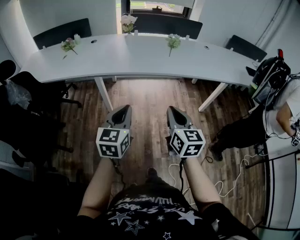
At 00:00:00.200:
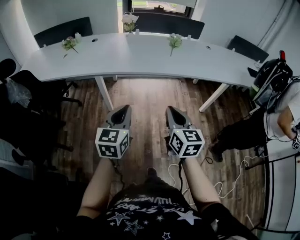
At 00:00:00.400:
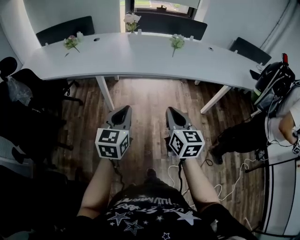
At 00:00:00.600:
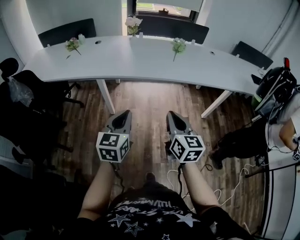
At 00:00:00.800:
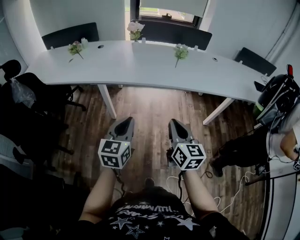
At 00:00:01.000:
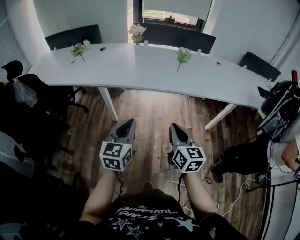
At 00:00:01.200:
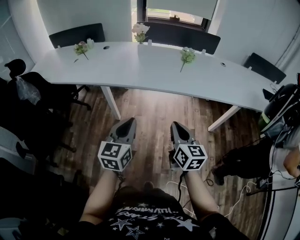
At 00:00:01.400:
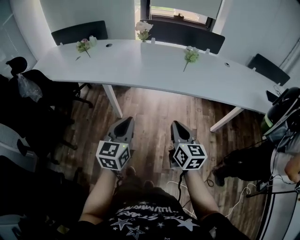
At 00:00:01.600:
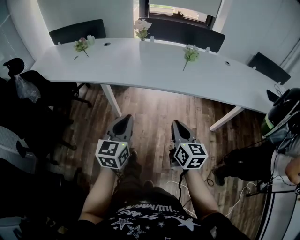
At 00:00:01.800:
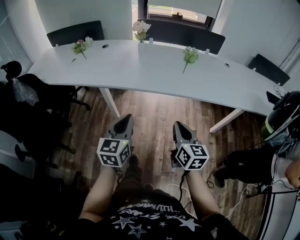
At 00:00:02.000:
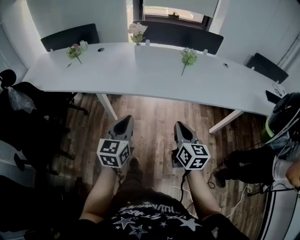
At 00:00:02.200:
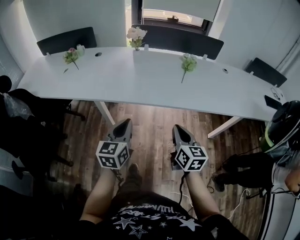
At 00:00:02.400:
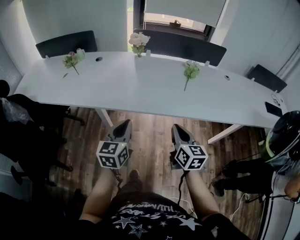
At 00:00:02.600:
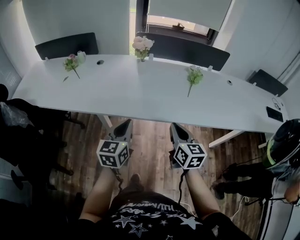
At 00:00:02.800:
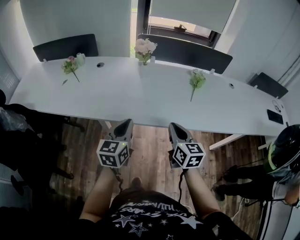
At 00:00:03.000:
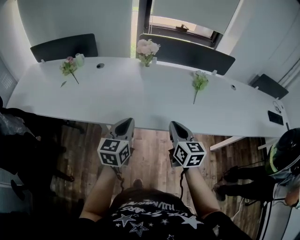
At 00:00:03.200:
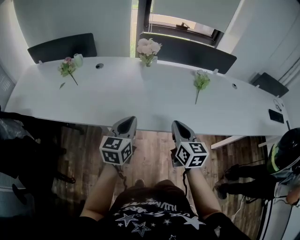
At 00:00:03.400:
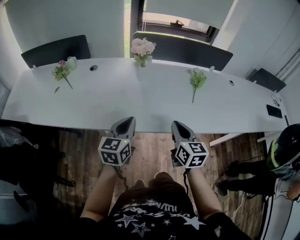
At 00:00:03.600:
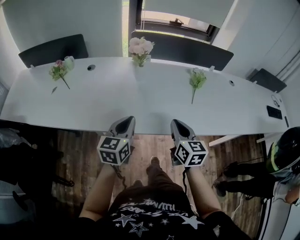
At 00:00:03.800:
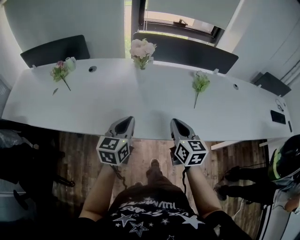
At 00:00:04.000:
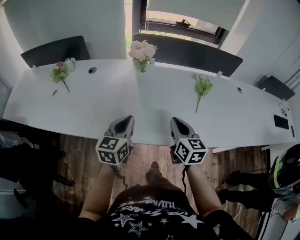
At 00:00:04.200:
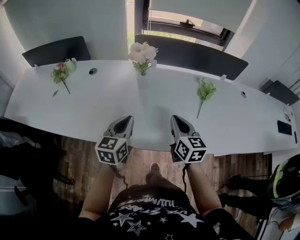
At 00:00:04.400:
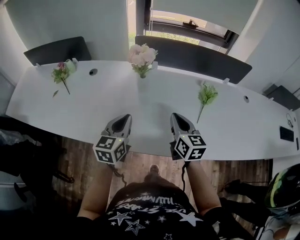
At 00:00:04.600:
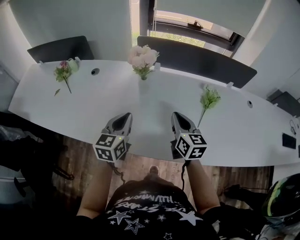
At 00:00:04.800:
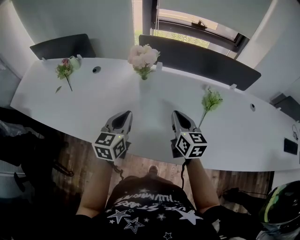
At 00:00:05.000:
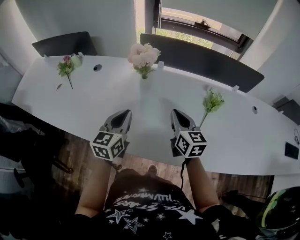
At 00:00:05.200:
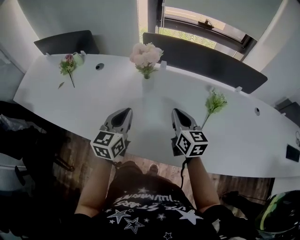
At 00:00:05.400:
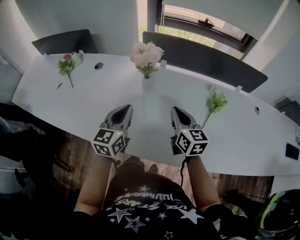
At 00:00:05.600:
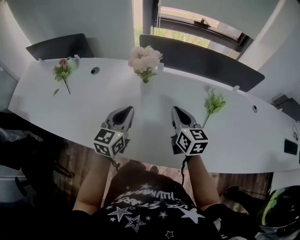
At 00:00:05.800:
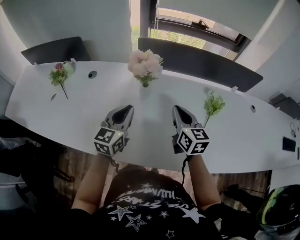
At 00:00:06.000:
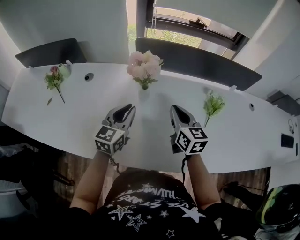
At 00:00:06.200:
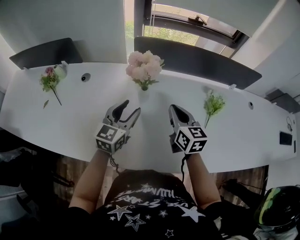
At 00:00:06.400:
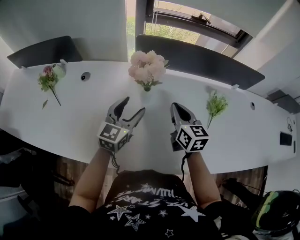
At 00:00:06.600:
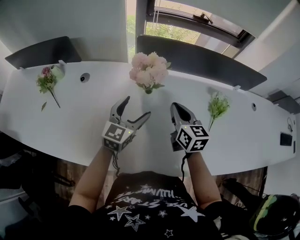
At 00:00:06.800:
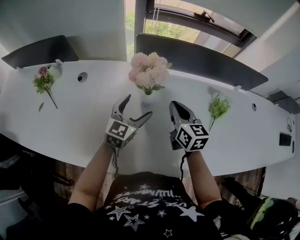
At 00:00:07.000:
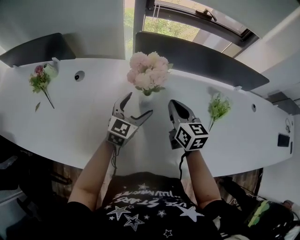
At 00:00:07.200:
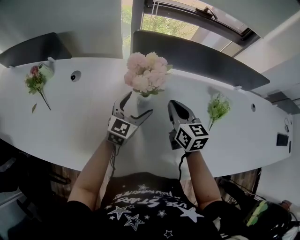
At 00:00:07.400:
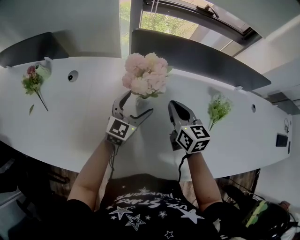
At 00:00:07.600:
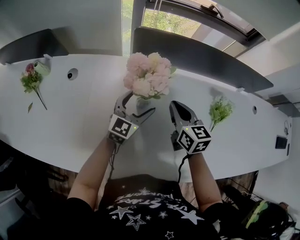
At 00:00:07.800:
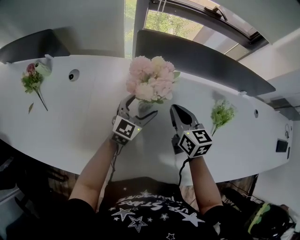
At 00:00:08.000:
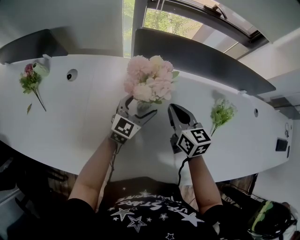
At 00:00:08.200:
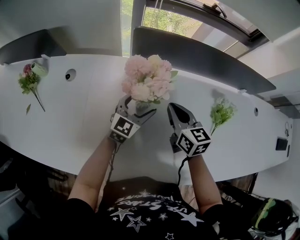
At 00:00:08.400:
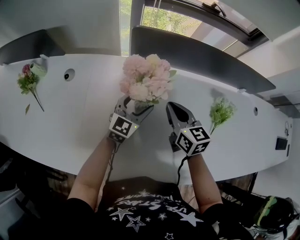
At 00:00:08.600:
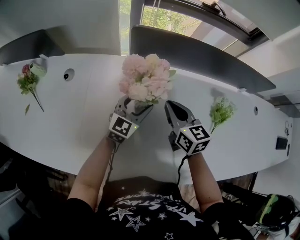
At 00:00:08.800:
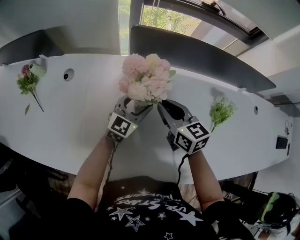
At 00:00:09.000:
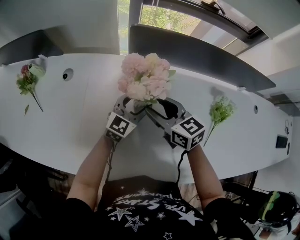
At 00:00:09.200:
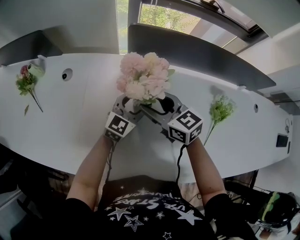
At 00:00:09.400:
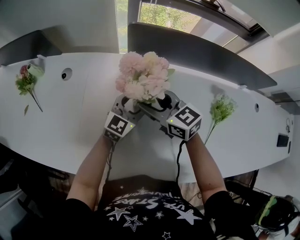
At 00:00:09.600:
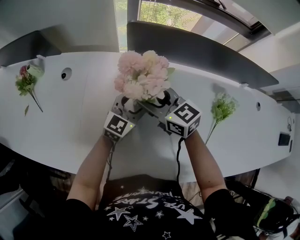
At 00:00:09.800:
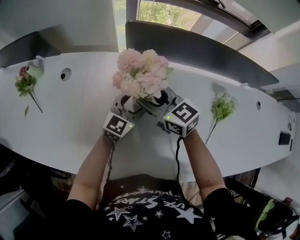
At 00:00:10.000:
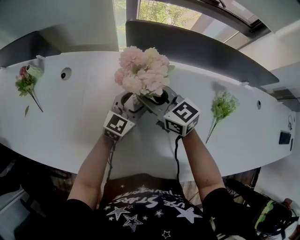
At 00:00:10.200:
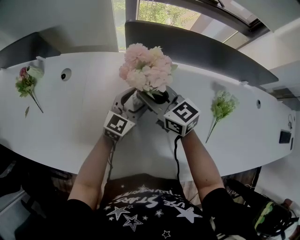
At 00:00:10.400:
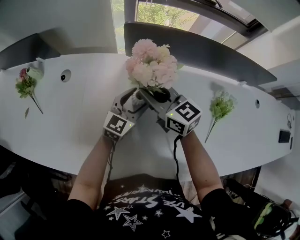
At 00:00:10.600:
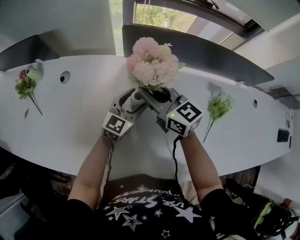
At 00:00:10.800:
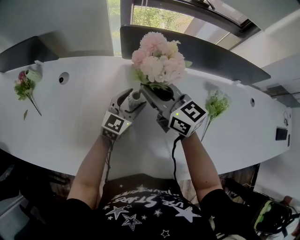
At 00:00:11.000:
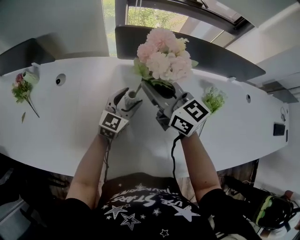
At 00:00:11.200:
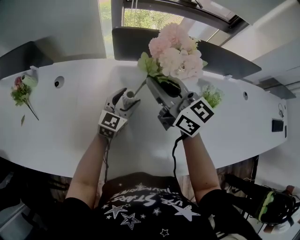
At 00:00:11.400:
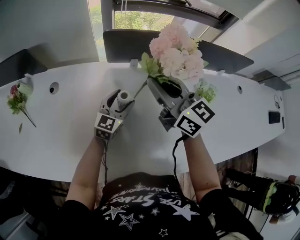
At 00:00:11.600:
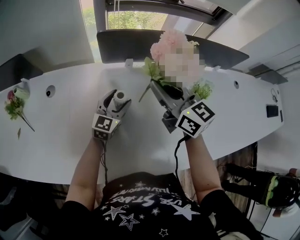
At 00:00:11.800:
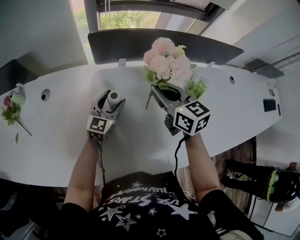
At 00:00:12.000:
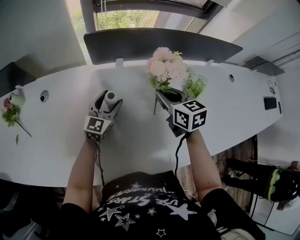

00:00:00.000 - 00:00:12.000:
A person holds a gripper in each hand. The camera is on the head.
00:00:00.000 - 00:00:01.600: The left gripper travels forward by about 10 cm. Meanwhile the right gripper goes roughly 15 cm forward and to the right.
00:00:01.600 - 00:00:03.000: The left gripper heads forward, covering roughly 30 cm, while the right gripper shifts roughly 30 cm forward and to the left.
00:00:03.000 - 00:00:04.400: The grippers both shift forward by approximately 20 cm.
00:00:04.400 - 00:00:06.000: Both grippers travel together forward, about 10 cm.
00:00:06.000 - 00:00:07.600: The two grippers go roughly 15 cm forward and downward. The left gripper opens.
00:00:07.600 - 00:00:09.000: The right gripper travels to the left by roughly 5 cm, swivels approximately 20 degrees, and opens.
00:00:09.000 - 00:00:10.400: The right gripper changes place by about 5 cm, and closes up.
00:00:10.400 - 00:00:12.000: The right gripper is displaced to the right by some 20 cm, and changes its angle by approximately 30 degrees.

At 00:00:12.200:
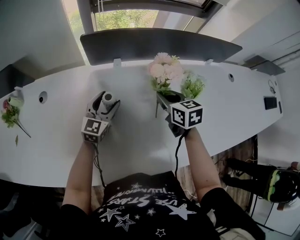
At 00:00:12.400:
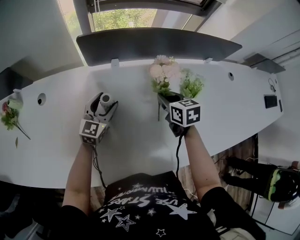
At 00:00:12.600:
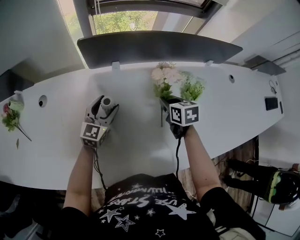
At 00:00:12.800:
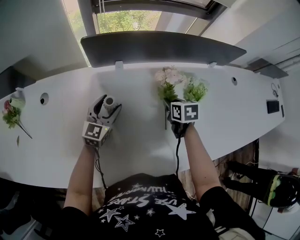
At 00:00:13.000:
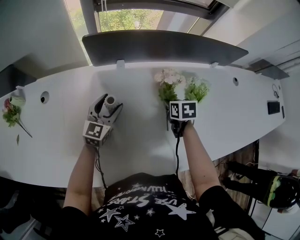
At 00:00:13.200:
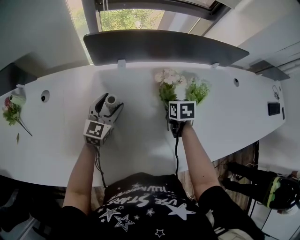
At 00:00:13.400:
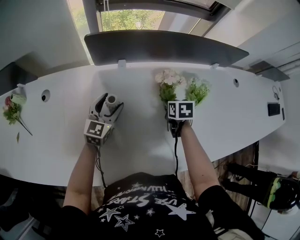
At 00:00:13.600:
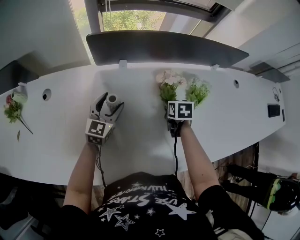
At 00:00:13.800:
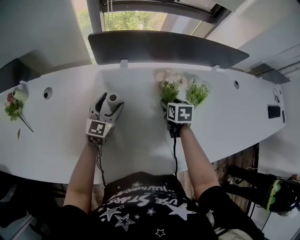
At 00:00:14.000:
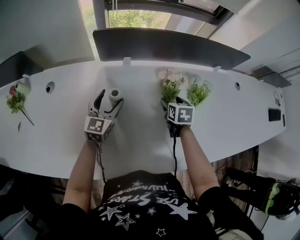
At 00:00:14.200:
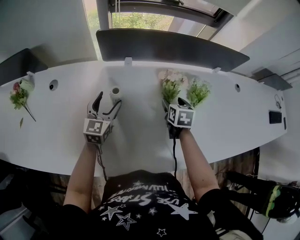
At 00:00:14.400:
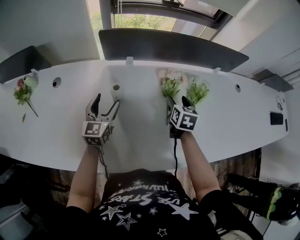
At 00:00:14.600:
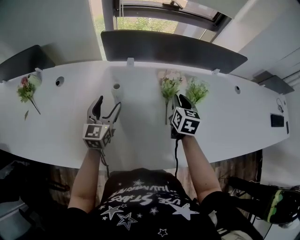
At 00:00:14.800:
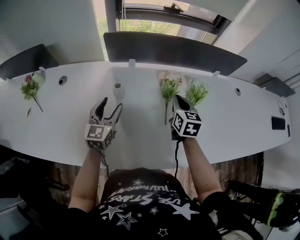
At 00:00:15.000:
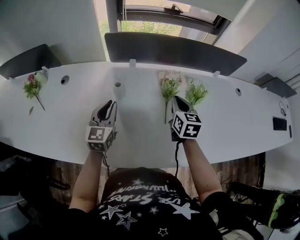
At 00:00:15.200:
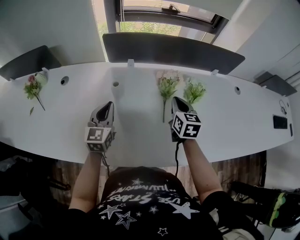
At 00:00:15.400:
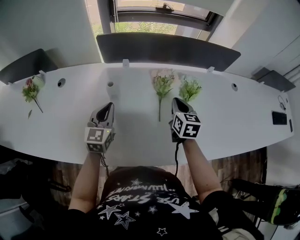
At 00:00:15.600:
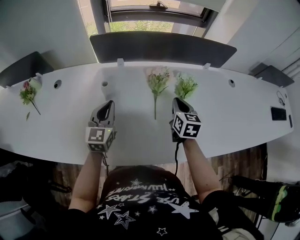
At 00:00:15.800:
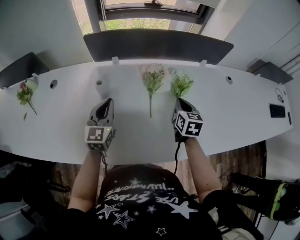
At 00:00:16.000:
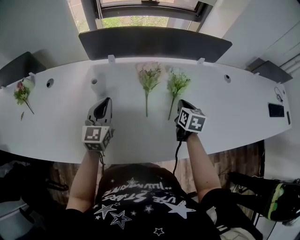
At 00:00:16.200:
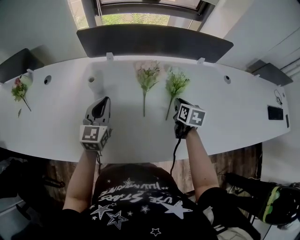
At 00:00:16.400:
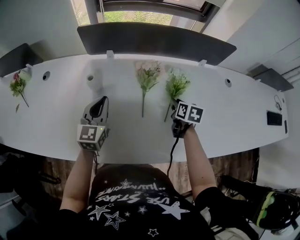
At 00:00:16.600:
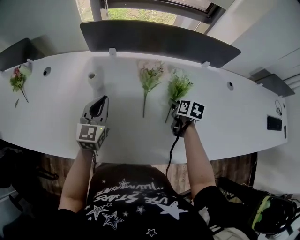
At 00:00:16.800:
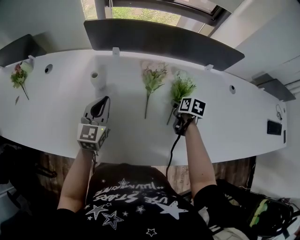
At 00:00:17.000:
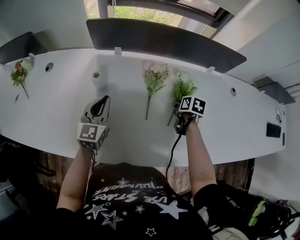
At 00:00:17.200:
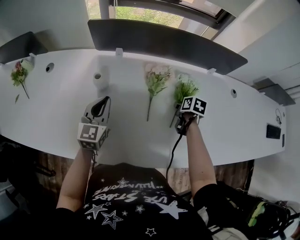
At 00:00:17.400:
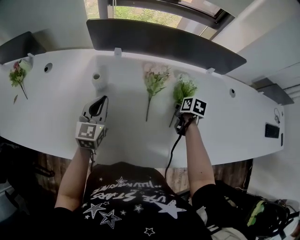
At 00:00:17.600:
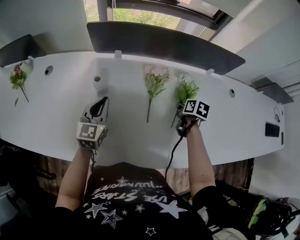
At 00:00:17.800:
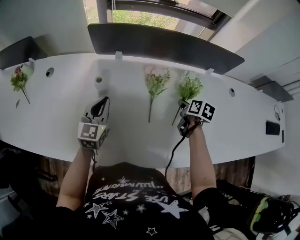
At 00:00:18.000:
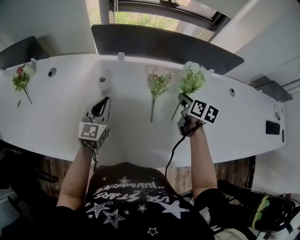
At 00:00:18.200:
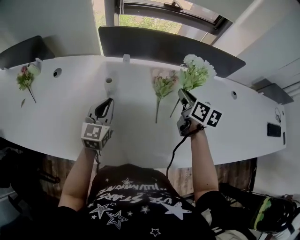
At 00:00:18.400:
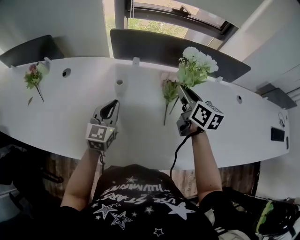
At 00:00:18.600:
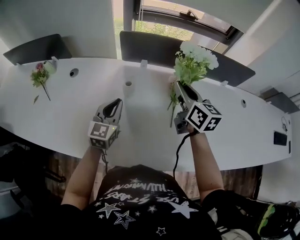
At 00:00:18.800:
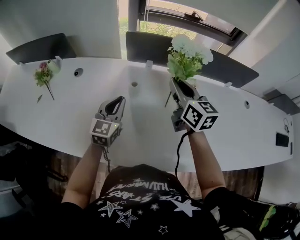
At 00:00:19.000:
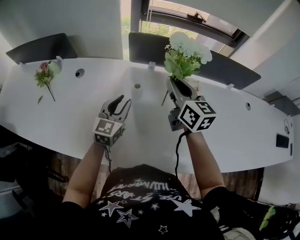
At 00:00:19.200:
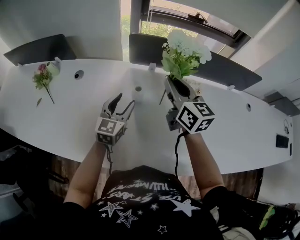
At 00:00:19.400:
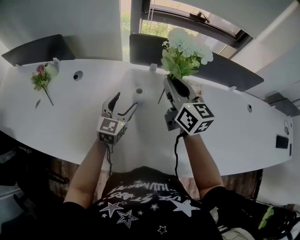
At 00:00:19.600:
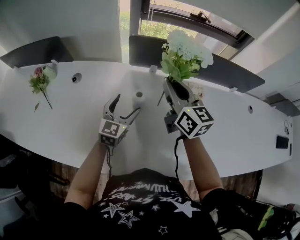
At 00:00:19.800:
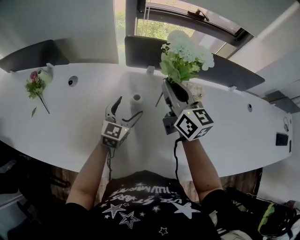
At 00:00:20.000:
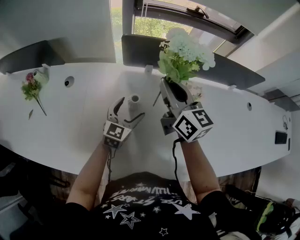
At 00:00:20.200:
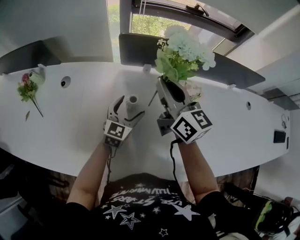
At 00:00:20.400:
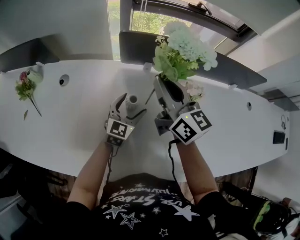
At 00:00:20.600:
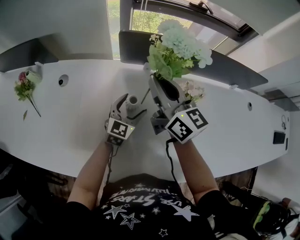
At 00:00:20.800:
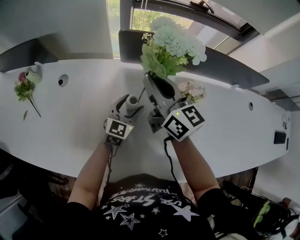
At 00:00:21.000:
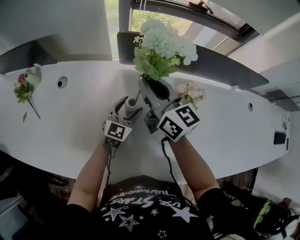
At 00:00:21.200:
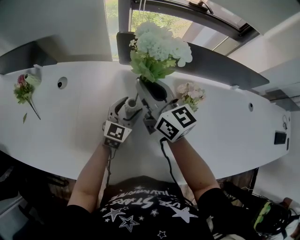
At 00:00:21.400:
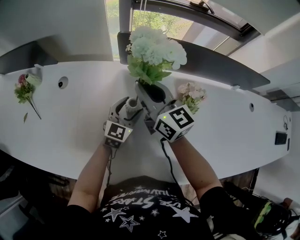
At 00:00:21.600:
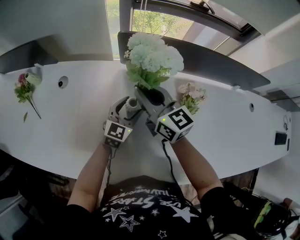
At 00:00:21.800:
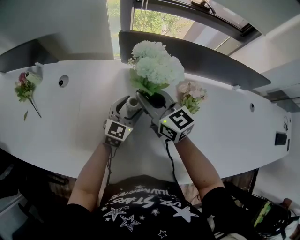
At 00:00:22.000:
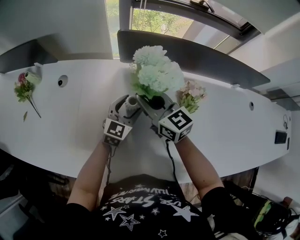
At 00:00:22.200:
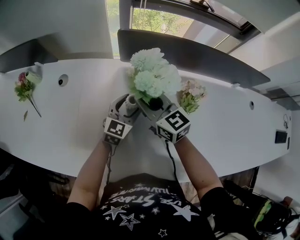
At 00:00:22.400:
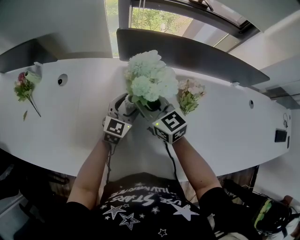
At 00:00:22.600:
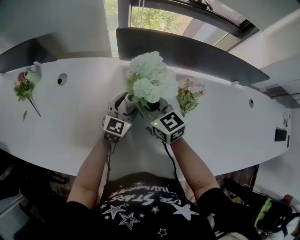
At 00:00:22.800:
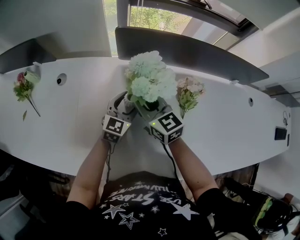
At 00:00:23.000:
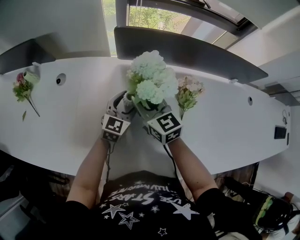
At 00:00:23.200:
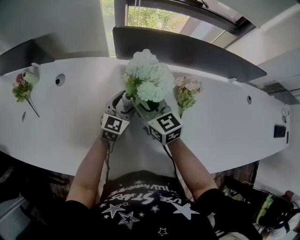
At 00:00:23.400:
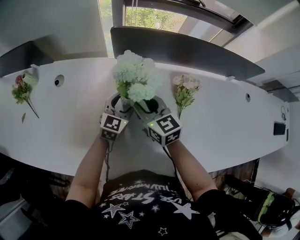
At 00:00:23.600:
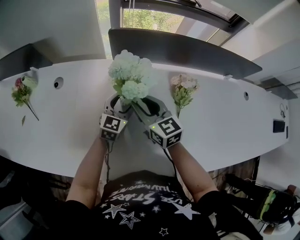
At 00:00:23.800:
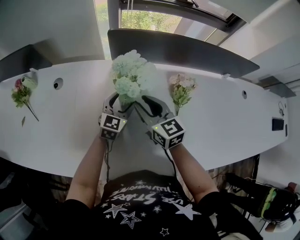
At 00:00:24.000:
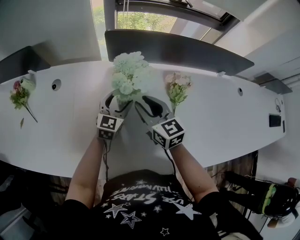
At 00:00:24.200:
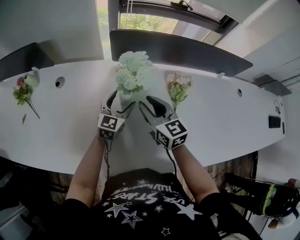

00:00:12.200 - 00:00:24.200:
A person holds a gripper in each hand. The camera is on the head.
00:00:12.200 - 00:00:13.800: The right gripper moves downward, some 10 cm, rotates some 20 degrees, and opens up.
00:00:13.800 - 00:00:15.200: The right gripper is displaced upward and backward by roughly 15 cm, rotates roughly 30 degrees, and closes; the left gripper heads backward and upward, covering approximately 15 cm, and closes up.
00:00:15.200 - 00:00:16.600: The right gripper travels to the right and downward by approximately 15 cm, turns by about 30 degrees, and opens its fingers. The left gripper is displaced to the right by about 10 cm.
00:00:16.600 - 00:00:18.200: The right gripper travels upward and to the left by about 15 cm, rotates approximately 20 degrees, and closes up, while the left gripper travels to the left by roughly 5 cm.
00:00:18.200 - 00:00:19.800: The left gripper is displaced forward by approximately 5 cm, and opens its fingers; the right gripper goes some 25 cm to the left and upward, and changes its angle by some 30 degrees.
00:00:19.800 - 00:00:21.200: The left gripper shifts by approximately 5 cm, while the right gripper heads to the left, covering some 5 cm.
00:00:21.200 - 00:00:22.600: The right gripper heads downward, covering roughly 10 cm, and changes its angle by approximately 20 degrees.
00:00:22.600 - 00:00:24.200: The right gripper moves backward and to the right, approximately 10 cm.
